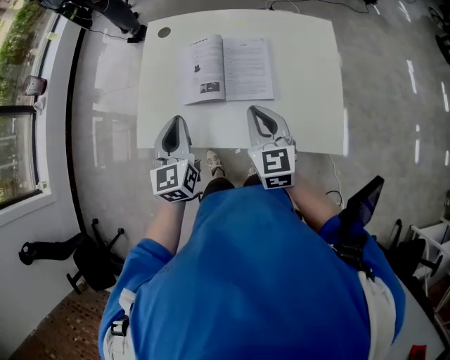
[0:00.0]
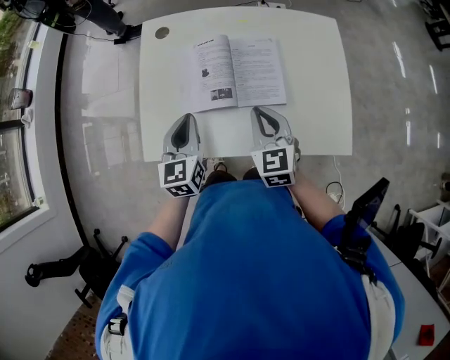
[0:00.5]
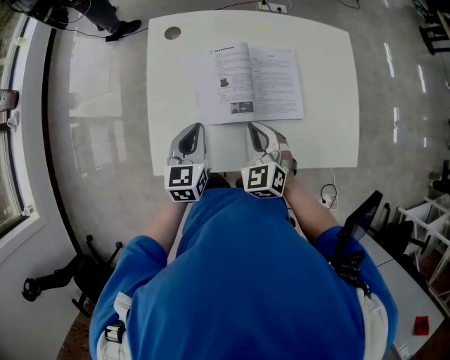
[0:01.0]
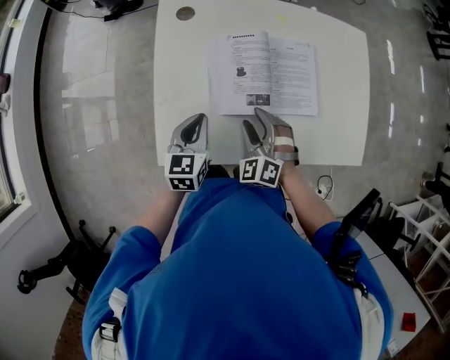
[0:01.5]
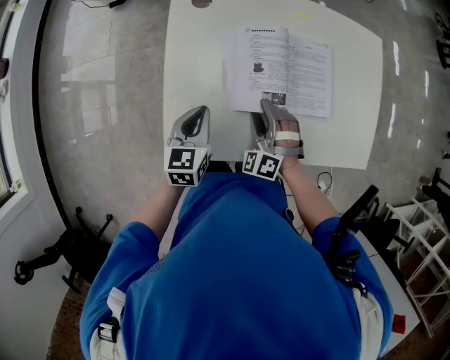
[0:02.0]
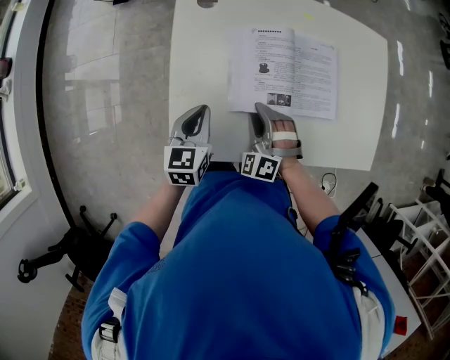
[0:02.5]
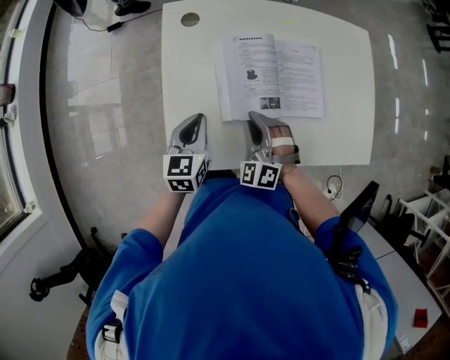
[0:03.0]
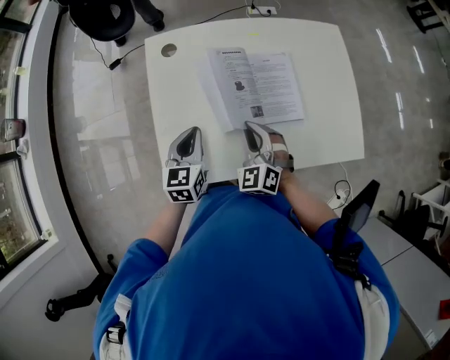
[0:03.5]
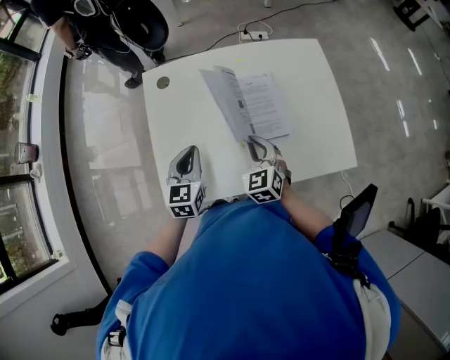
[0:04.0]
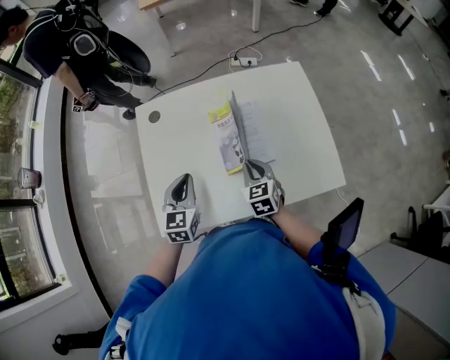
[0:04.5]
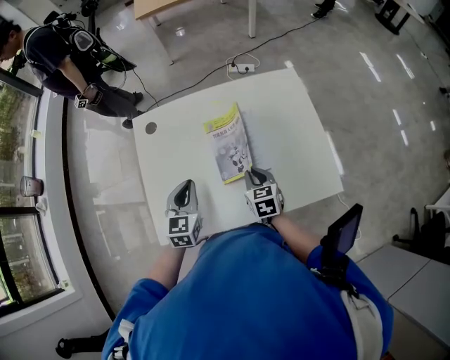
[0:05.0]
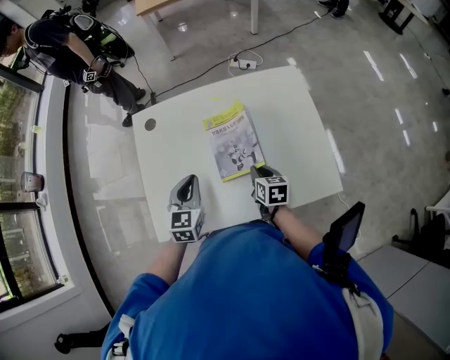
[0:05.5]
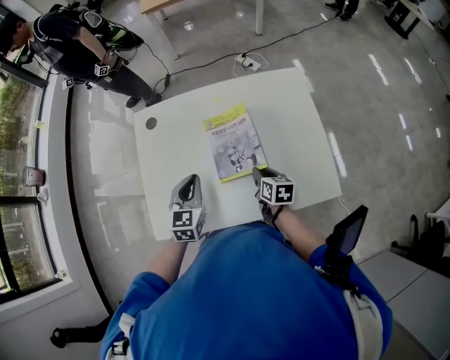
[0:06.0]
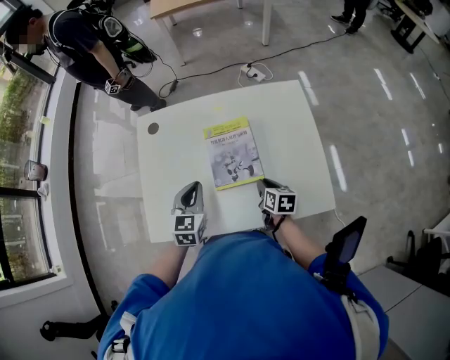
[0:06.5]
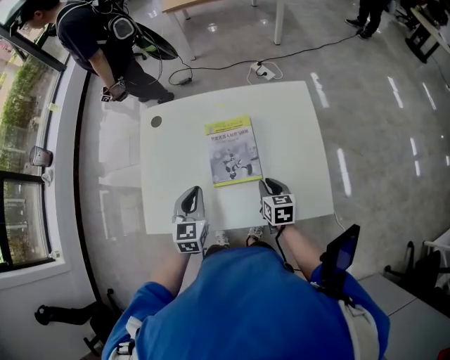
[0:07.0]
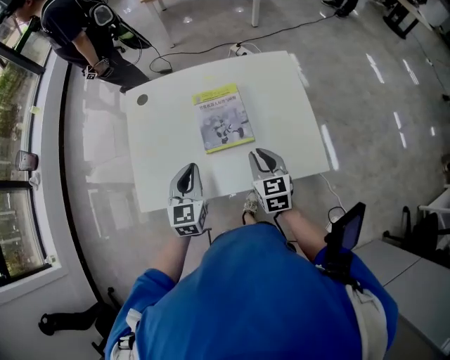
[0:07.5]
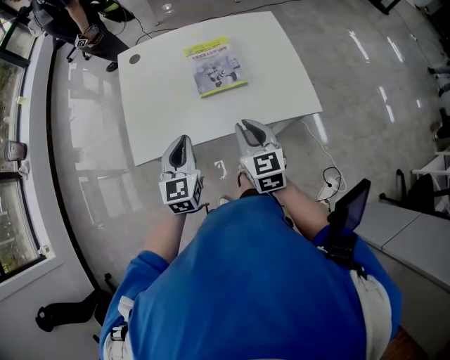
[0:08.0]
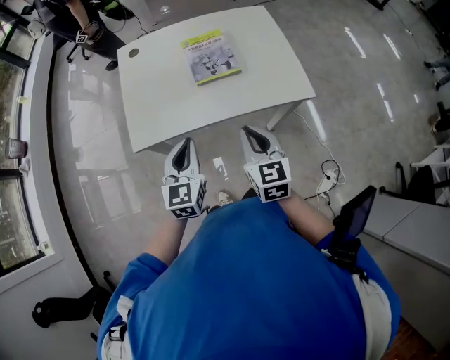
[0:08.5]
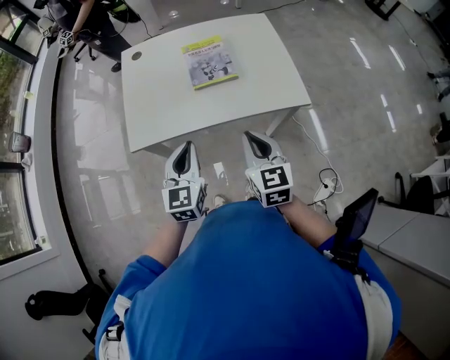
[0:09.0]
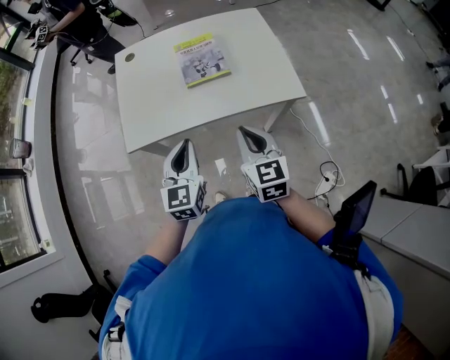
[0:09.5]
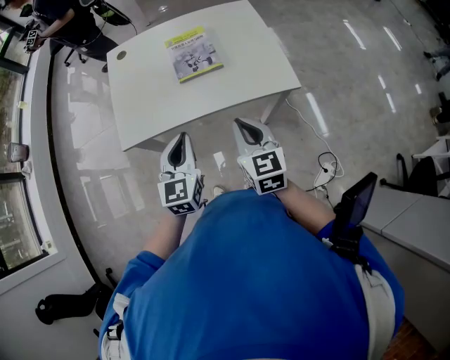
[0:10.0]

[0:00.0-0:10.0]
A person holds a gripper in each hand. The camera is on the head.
0:00.0 to 0:02.0: The right gripper heads downward and to the left, covering some 25 cm, rolls counterclockwise, seen from behind, by some 60 degrees, and opens up, while the left gripper travels downward, to the left and forward by roughly 25 cm, and swivels roughly 30 degrees.
0:02.0 to 0:04.0: The right gripper goes roughly 15 cm to the right and upward, rolls clockwise, seen from behind, by about 50 degrees, and closes its fingers. The left gripper travels upward and to the right by about 10 cm.
0:04.0 to 0:06.0: The right gripper heads to the right and downward, covering roughly 15 cm, and twists roughly 50 degrees clockwise, seen from behind. Meanwhile the left gripper is displaced to the right by roughly 10 cm.
0:06.0 to 0:08.0: The left gripper heads backward, covering about 20 cm. Meanwhile the right gripper shifts approximately 25 cm backward and upward, and turns by roughly 40 degrees.
0:08.0 to 0:10.0: Both grippers move backward and to the right, roughly 10 cm.

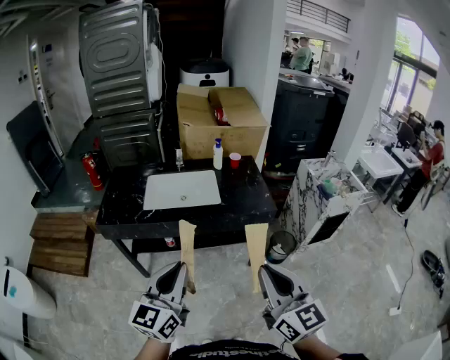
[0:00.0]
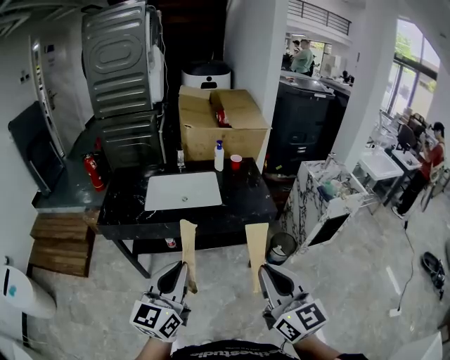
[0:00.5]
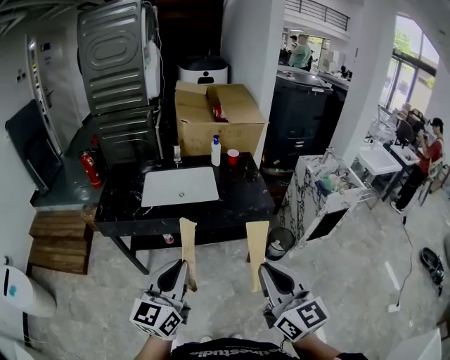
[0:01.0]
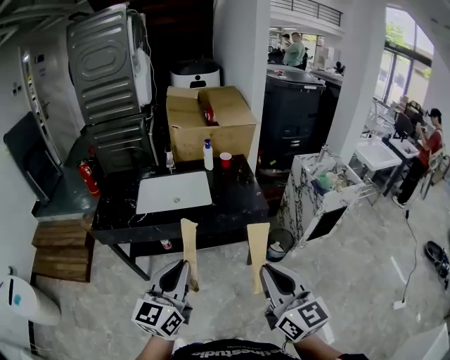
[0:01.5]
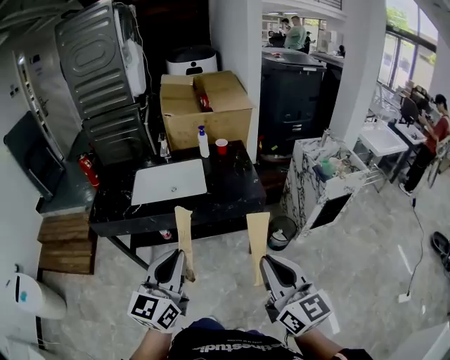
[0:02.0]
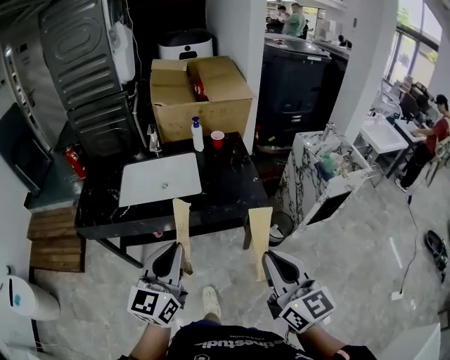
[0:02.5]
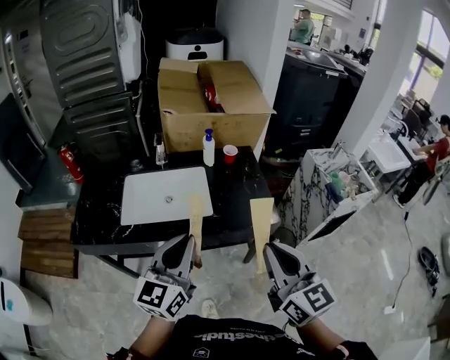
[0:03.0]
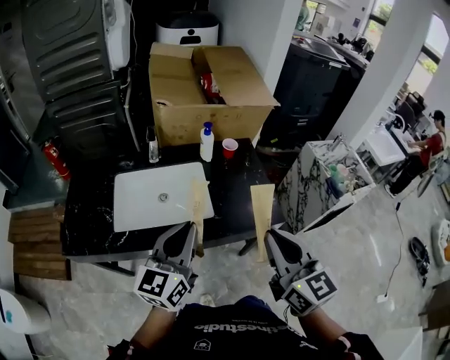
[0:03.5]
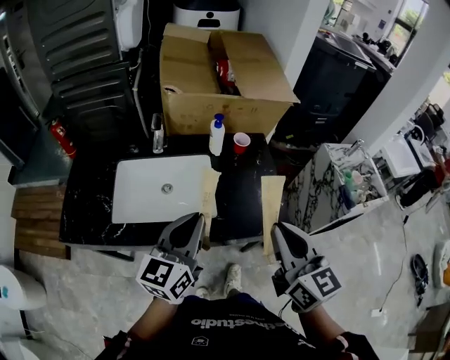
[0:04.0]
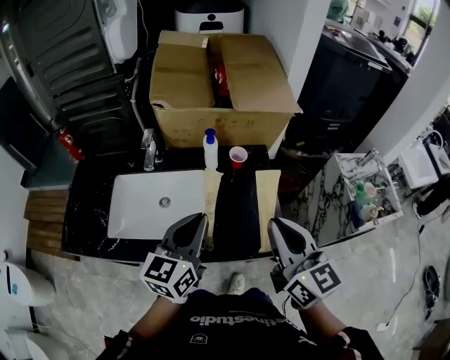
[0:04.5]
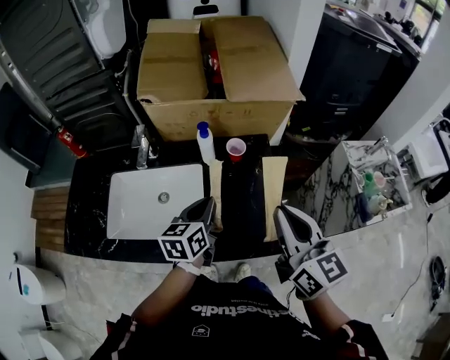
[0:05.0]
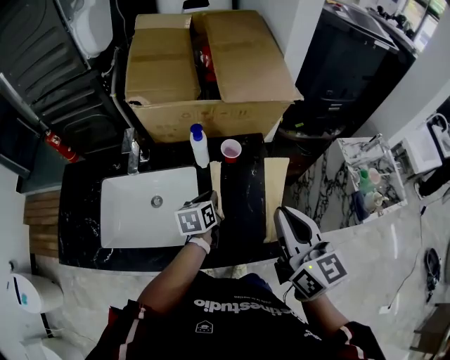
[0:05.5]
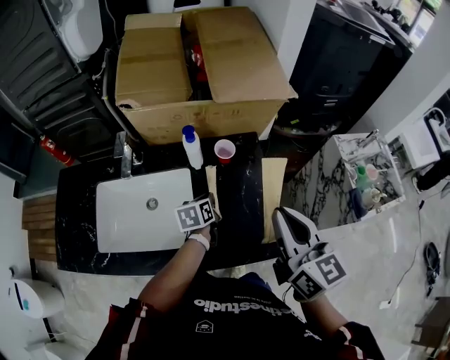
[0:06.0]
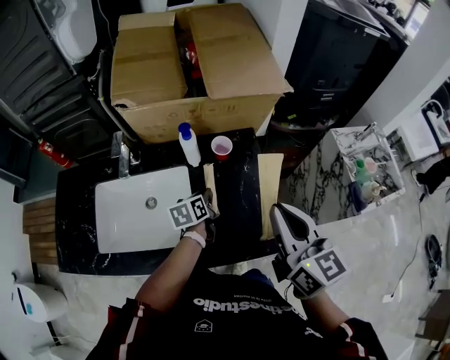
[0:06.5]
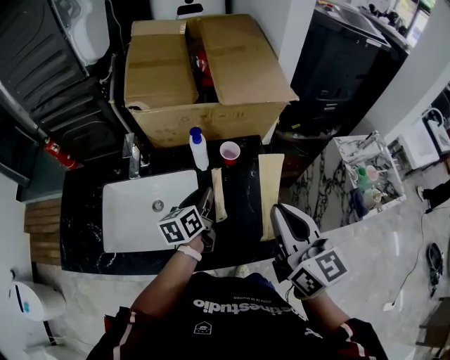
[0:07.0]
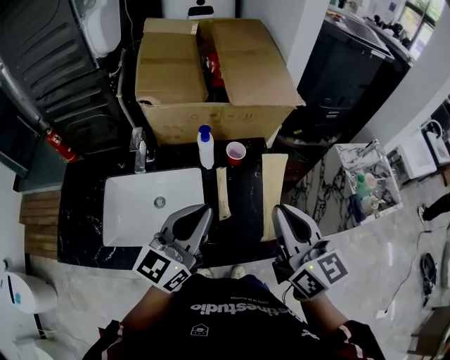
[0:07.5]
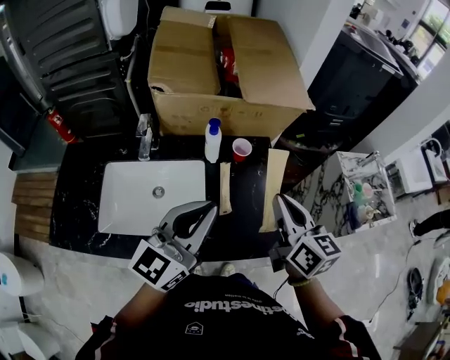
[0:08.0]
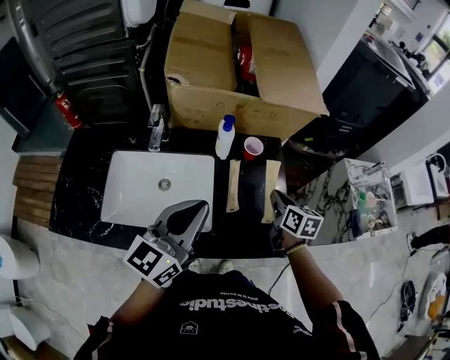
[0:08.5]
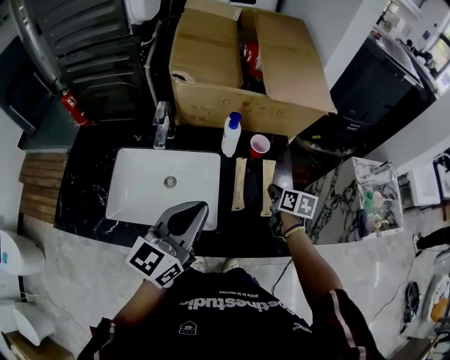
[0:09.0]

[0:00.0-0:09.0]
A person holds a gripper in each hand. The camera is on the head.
0:00.0 to 0:02.0: Both grippers move to the right, approximately 10 cm.
0:02.0 to 0:04.5: The two grippers travel together, forward, roughly 50 cm.
0:04.5 to 0:07.0: The left gripper moves forward and downward, approximately 20 cm, changes its angle by some 30 degrees, and opens; the right gripper moves forward, roughly 10 cm.
0:07.0 to 0:09.0: The left gripper heads backward, upward and to the left, covering approximately 20 cm, changes its angle by approximately 40 degrees, and closes up. The right gripper heads downward and forward, covering some 30 cm, and tilts its fingers about 40 degrees downward.

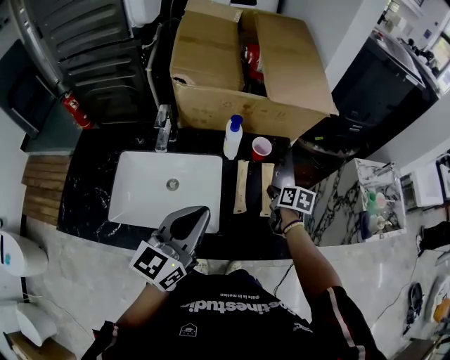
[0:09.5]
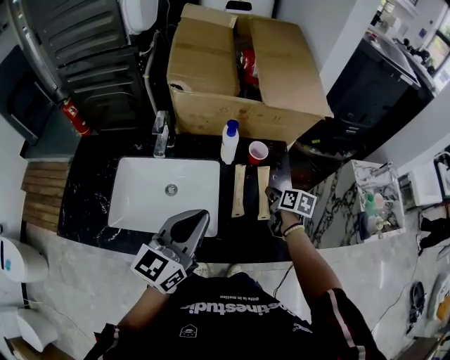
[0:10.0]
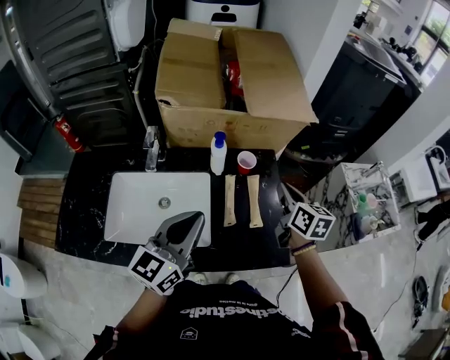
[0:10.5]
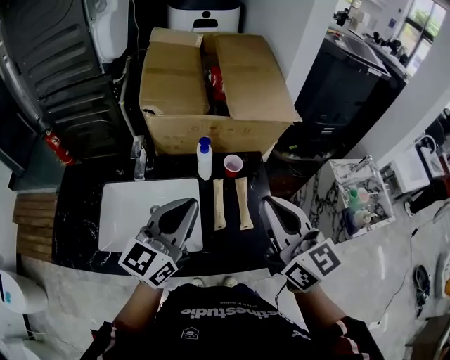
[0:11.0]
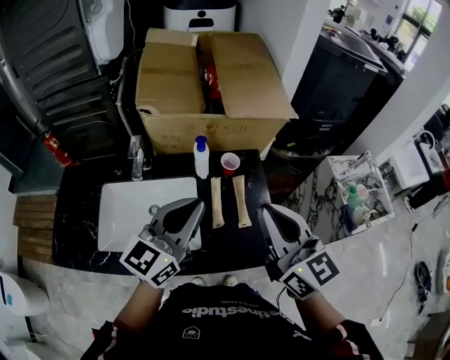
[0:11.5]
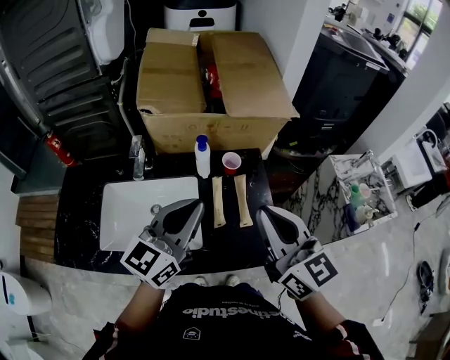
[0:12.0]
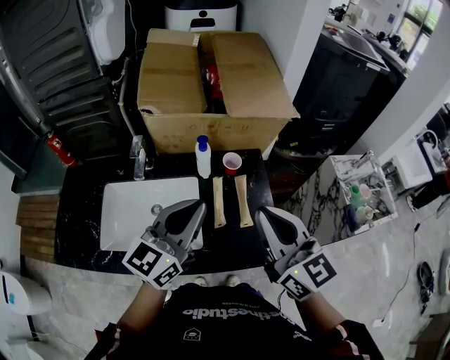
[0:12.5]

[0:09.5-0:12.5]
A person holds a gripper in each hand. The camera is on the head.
0:09.5 to 0:11.0: The right gripper is displaced upward by about 35 cm, and points its fingers approximately 50 degrees further upward. The left gripper travels upward by approximately 5 cm.
0:11.0 to 0:12.5: There are only small adjustments of the grippers.

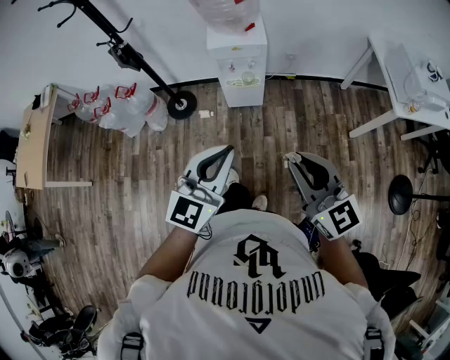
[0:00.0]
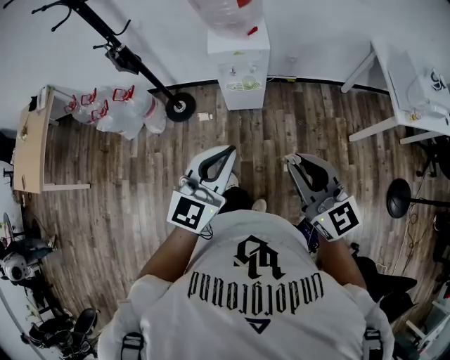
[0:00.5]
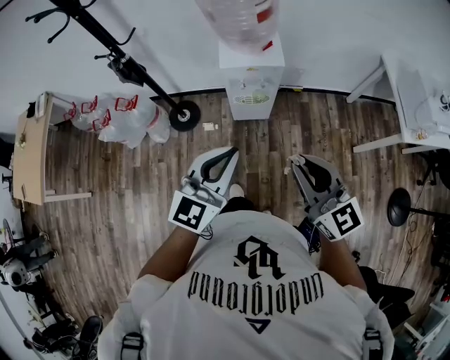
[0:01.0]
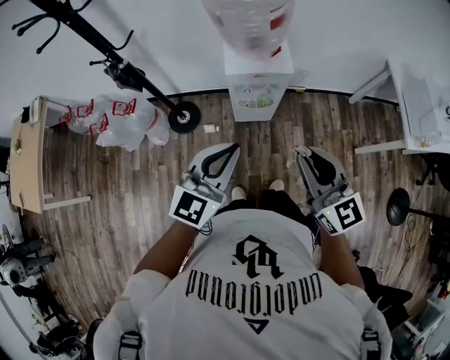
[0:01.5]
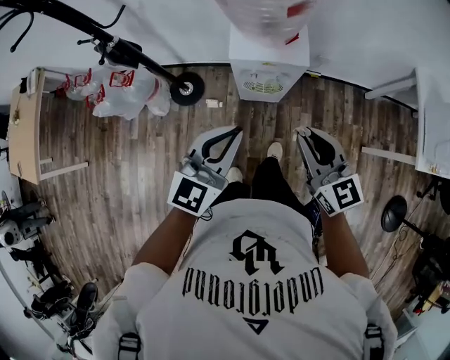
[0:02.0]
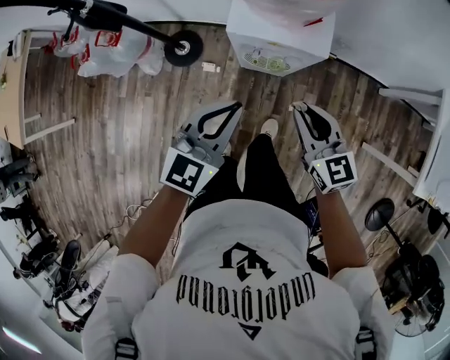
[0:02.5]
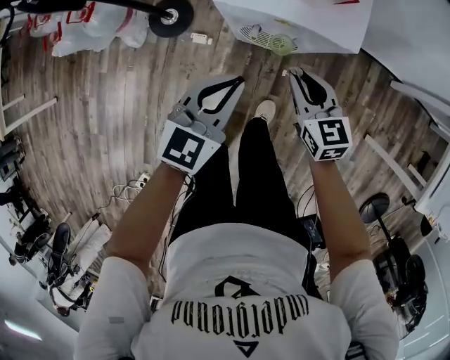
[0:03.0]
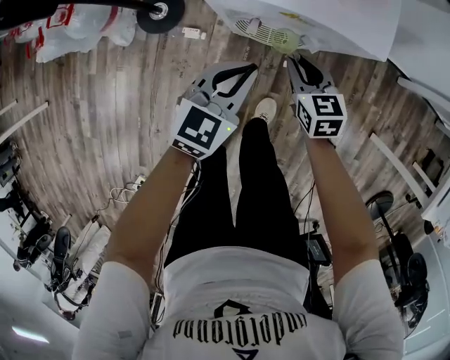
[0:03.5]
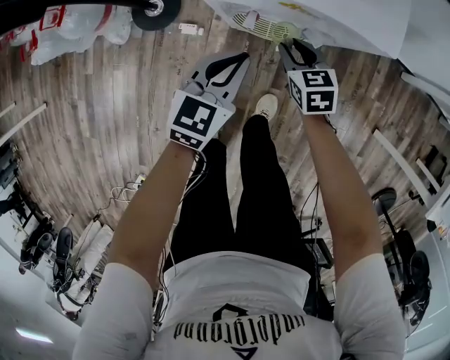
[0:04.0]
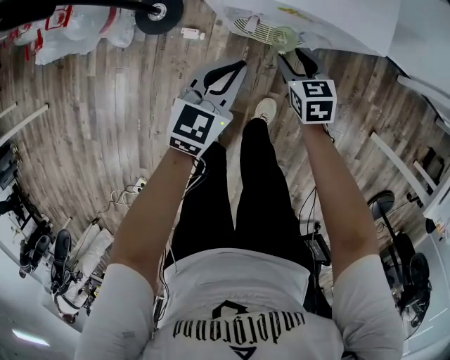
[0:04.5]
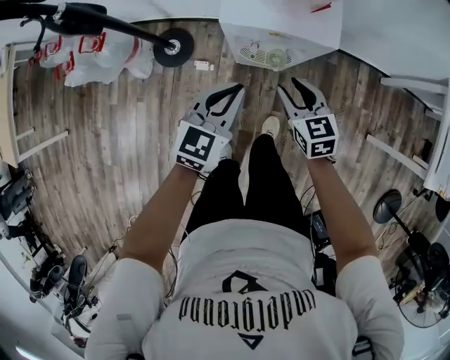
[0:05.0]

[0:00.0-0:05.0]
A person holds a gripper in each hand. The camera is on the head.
0:00.0 to 0:02.5: The pair of grippers is taken forward, about 40 cm. Both grippers travel together downward, approximately 20 cm. The right gripper rotates approximately 20 degrees.
0:02.5 to 0:05.0: The two grippers go approximately 15 cm downward. The right gripper opens up.
